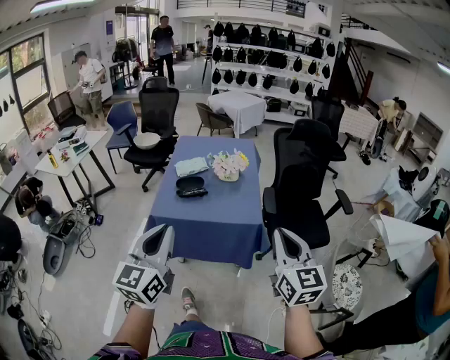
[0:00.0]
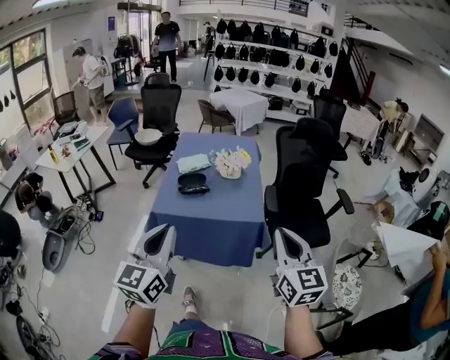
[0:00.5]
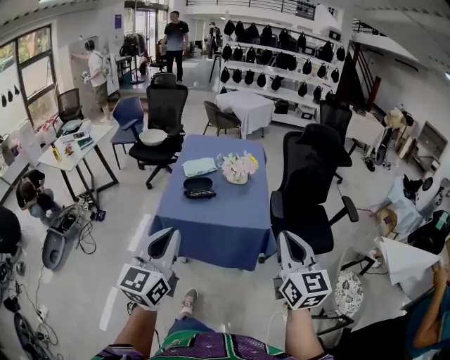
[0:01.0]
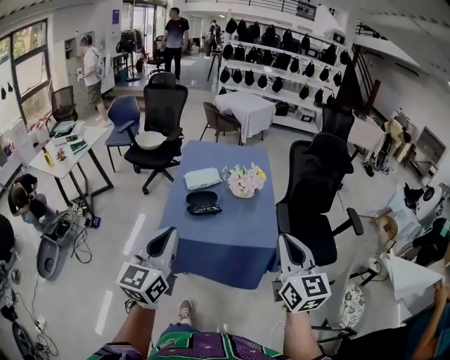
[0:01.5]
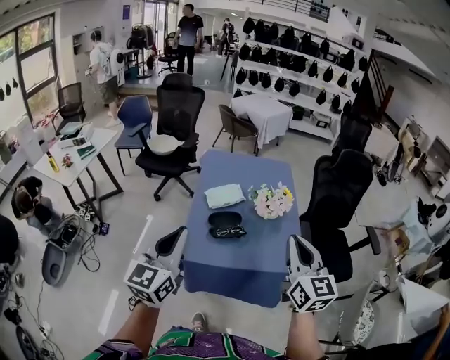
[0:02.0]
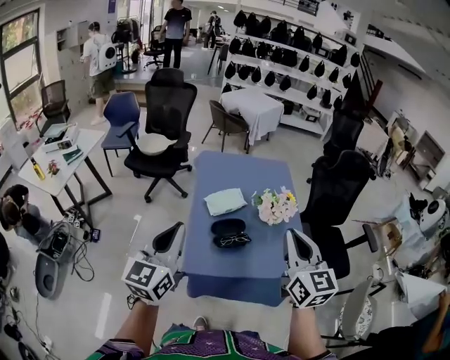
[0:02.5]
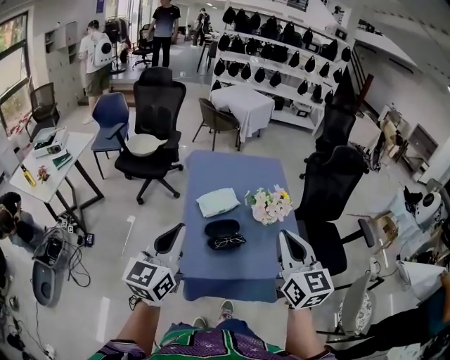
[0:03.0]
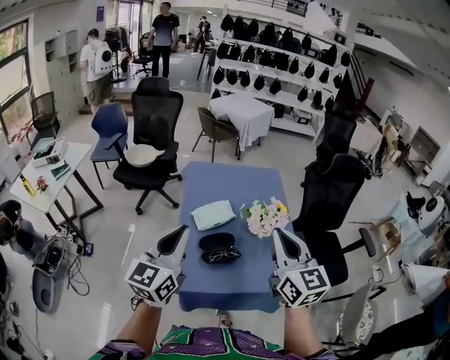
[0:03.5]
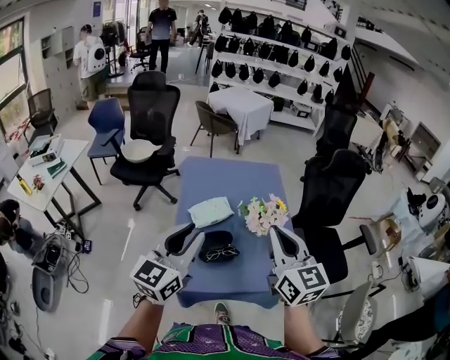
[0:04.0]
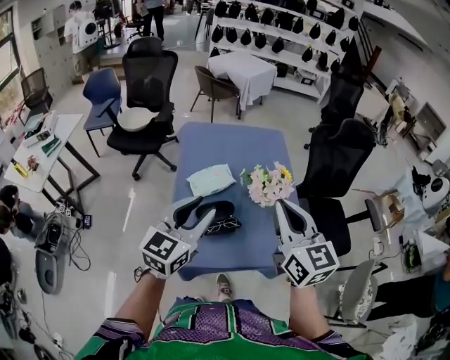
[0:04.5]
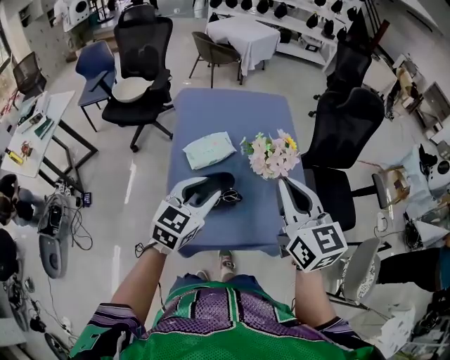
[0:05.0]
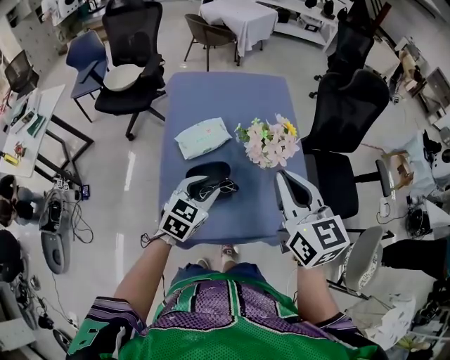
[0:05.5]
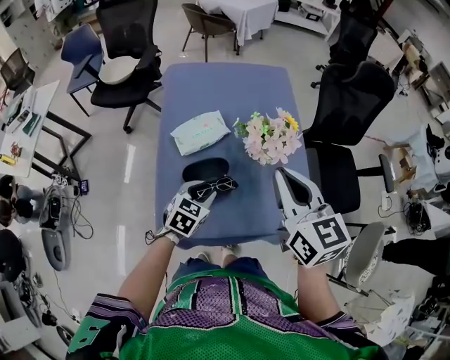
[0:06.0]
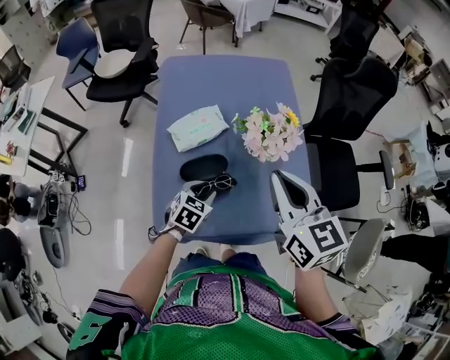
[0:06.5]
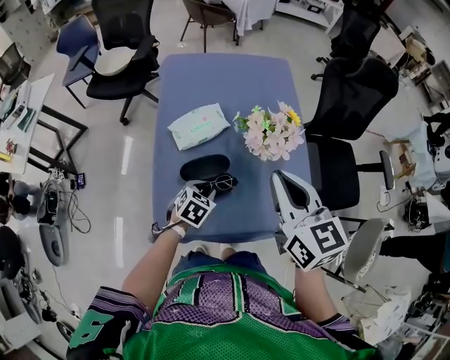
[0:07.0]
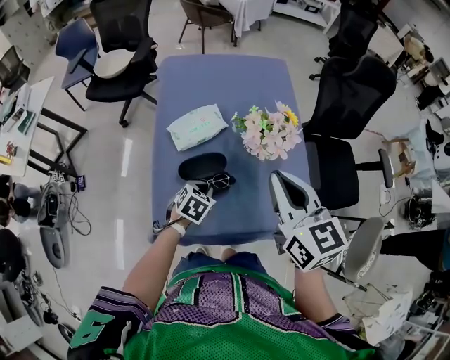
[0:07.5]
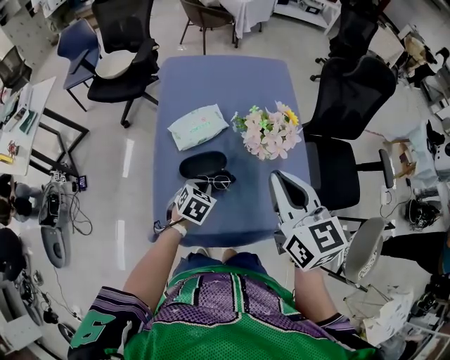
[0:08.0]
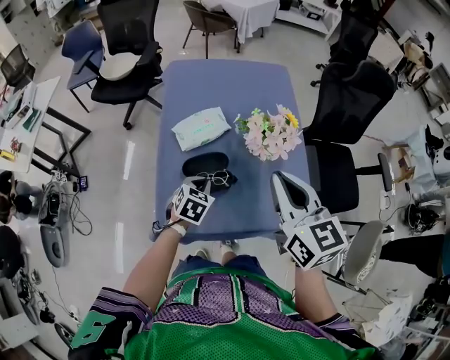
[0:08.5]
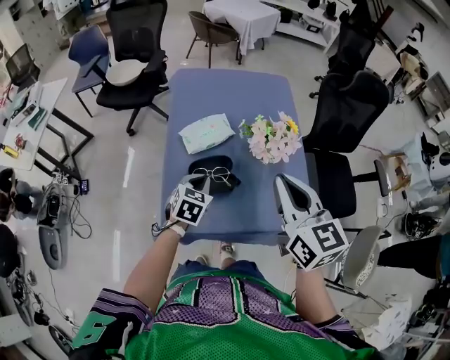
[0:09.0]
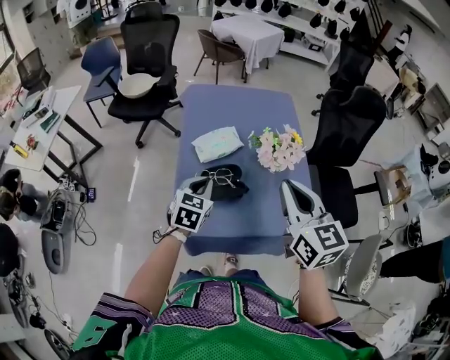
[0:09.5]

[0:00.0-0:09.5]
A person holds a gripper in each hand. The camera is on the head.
0:00.0 to 0:02.0: The two grippers go some 30 cm forward and to the left.
0:02.0 to 0:04.0: The left gripper moves forward, some 15 cm; the right gripper moves forward and to the left, roughly 15 cm.
0:04.0 to 0:05.5: The right gripper is displaced downward and forward by some 10 cm. The left gripper goes some 25 cm downward, and tips its fingers downward by about 30 degrees.
0:05.5 to 0:07.5: The left gripper is displaced downward by some 15 cm, changes its angle by approximately 30 degrees, and closes.
0:07.5 to 0:09.5: The right gripper heads backward, covering approximately 5 cm. Meanwhile the left gripper is displaced upward and to the left by about 15 cm, and swivels some 30 degrees.

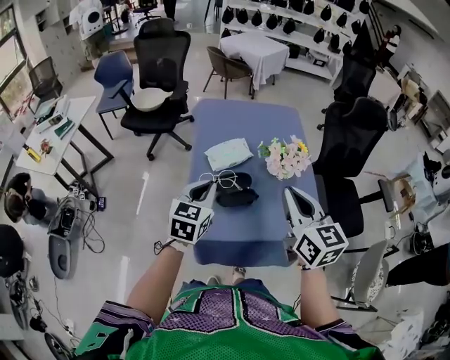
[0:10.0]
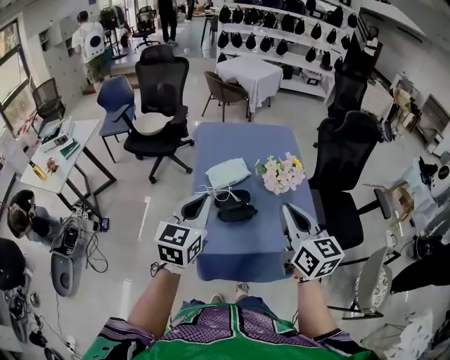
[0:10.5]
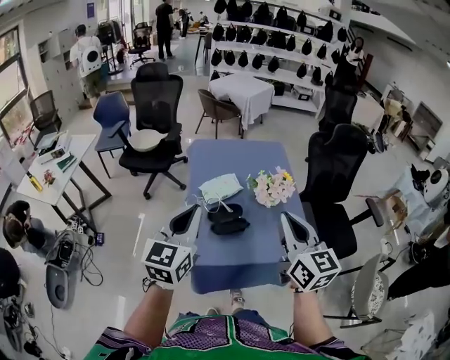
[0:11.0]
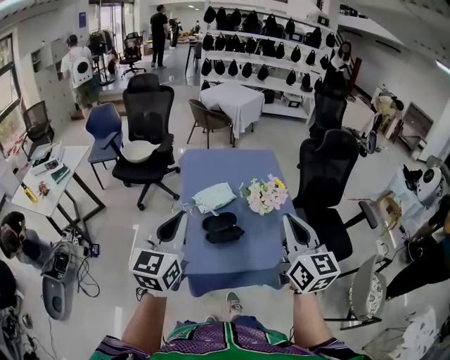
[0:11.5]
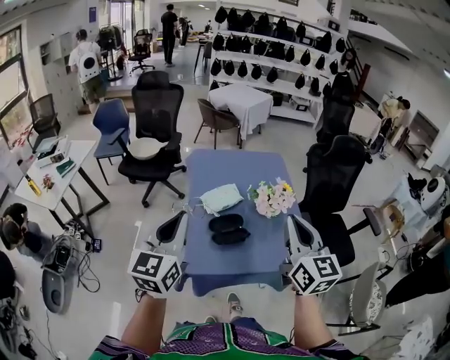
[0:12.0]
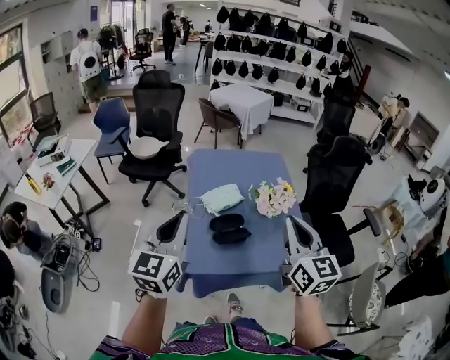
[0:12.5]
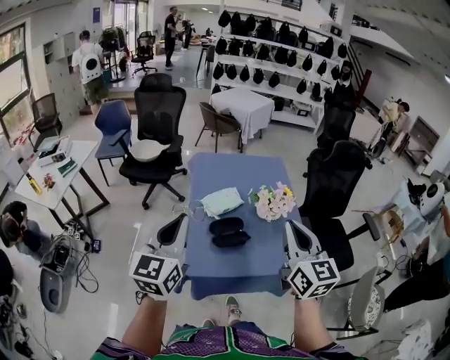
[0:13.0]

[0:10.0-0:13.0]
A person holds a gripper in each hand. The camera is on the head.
0:10.0 to 0:11.5: The left gripper goes roughly 20 cm upward and backward, and swivels some 20 degrees. The right gripper is displaced upward and backward by roughly 10 cm.
0:11.5 to 0:13.0: The grippers stay close to where they were, moving slightly.

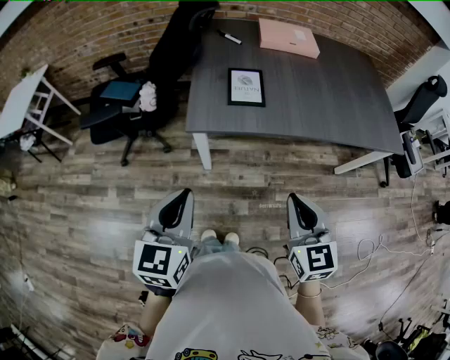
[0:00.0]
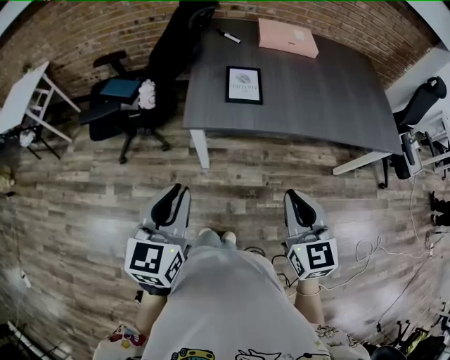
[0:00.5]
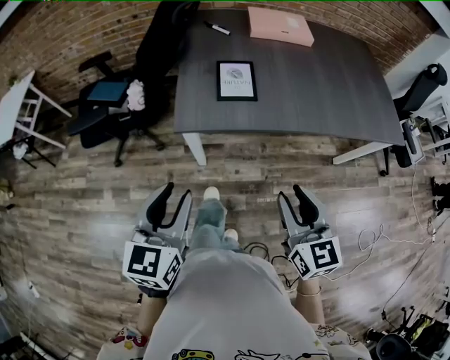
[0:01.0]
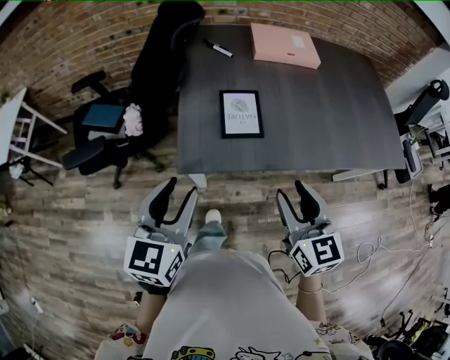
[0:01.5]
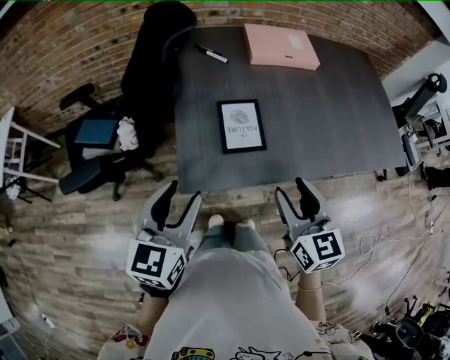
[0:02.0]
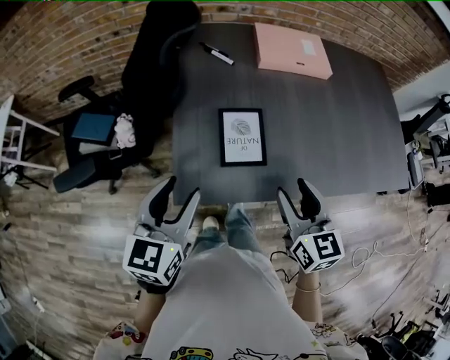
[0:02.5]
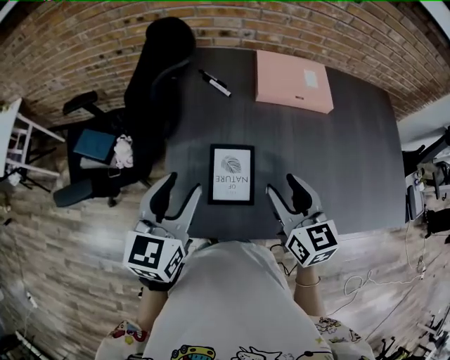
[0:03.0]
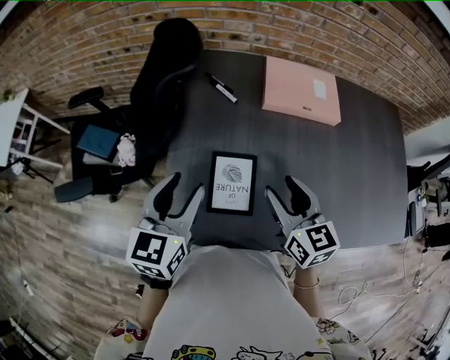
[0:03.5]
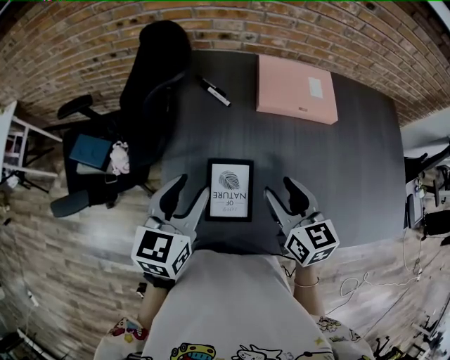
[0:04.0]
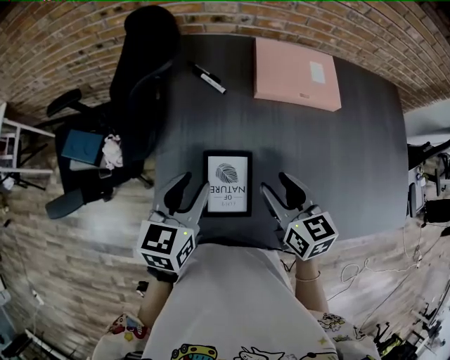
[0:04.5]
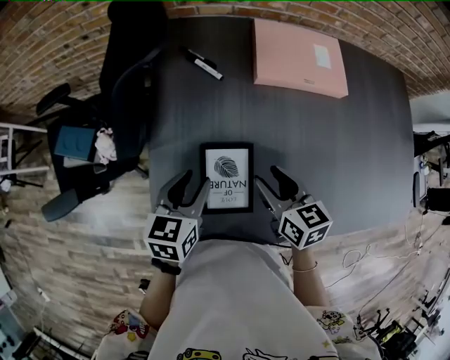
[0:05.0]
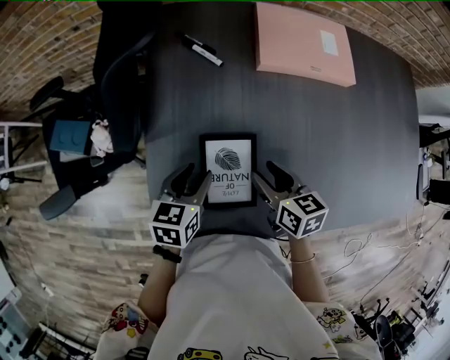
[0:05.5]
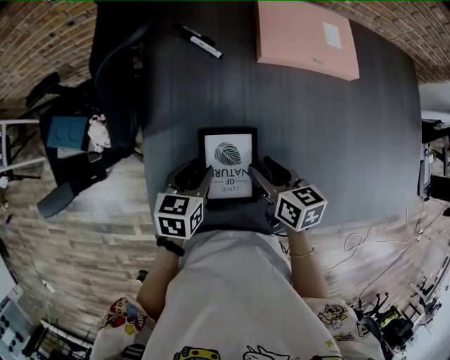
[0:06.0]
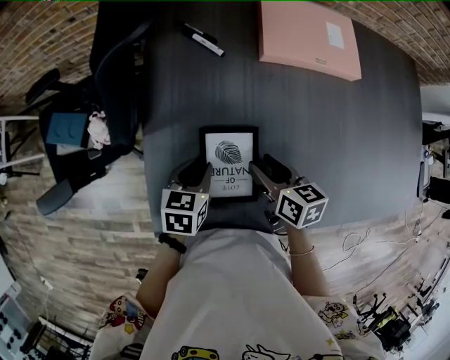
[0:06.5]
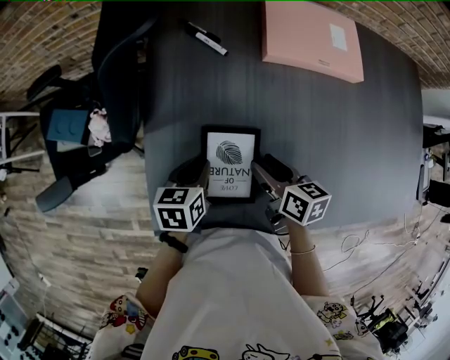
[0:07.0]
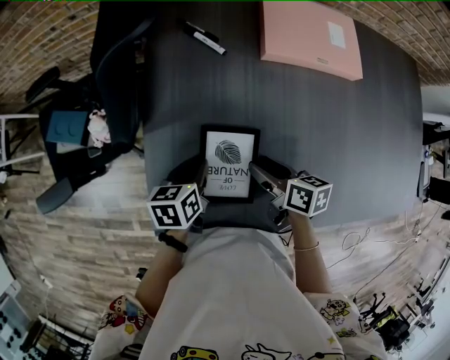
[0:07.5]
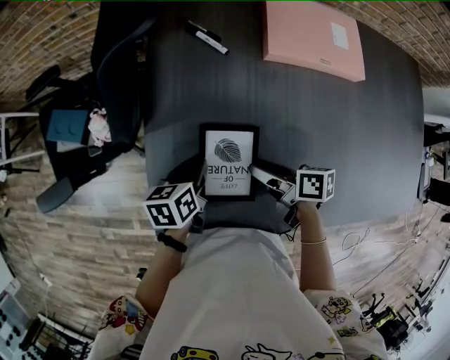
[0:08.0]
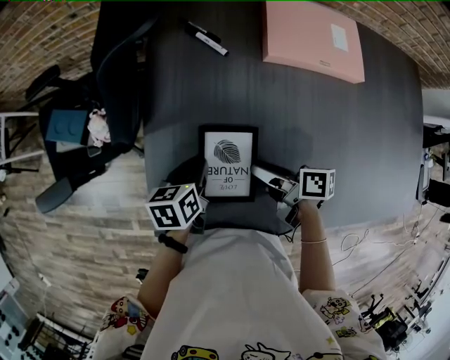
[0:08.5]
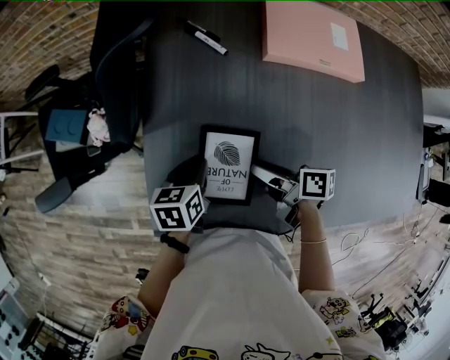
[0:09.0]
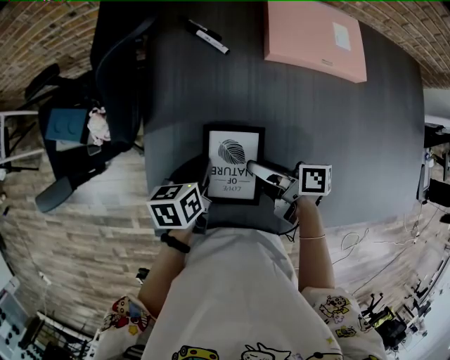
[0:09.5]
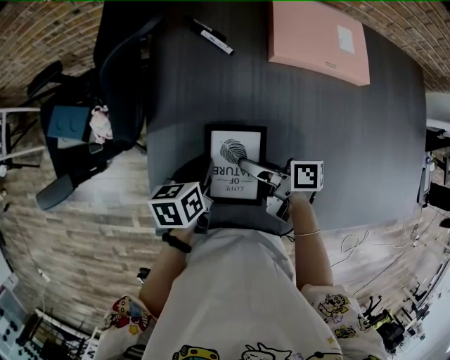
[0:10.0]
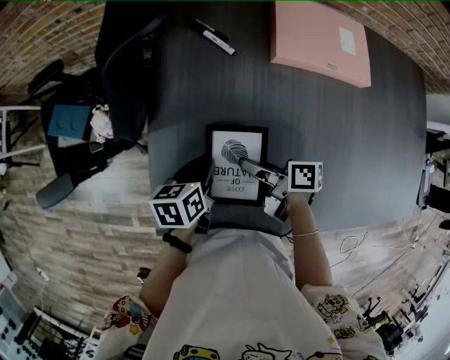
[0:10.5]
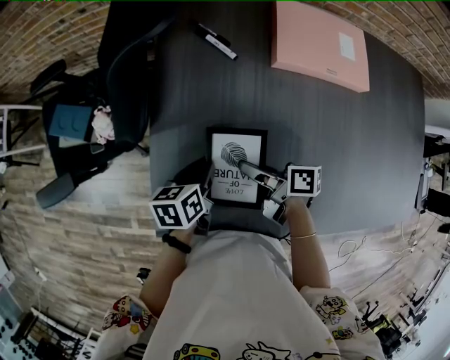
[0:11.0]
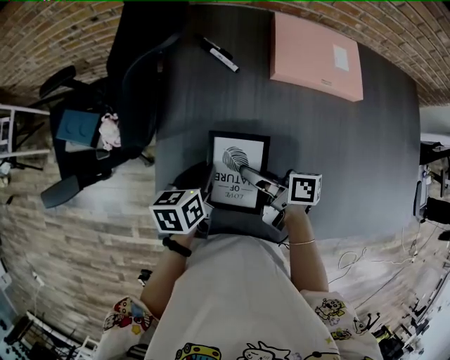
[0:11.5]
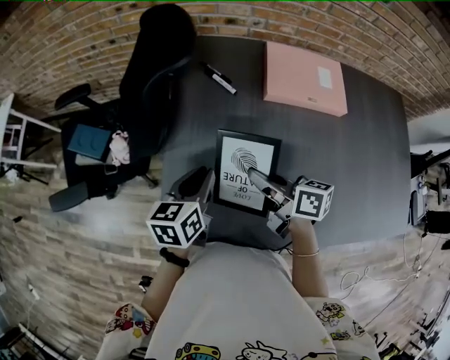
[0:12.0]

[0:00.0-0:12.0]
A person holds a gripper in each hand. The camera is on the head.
0:00.0 to 0:02.0: The two grippers go some 25 cm forward. The right gripper opens, while the left gripper opens its fingers.
0:02.0 to 0:04.0: The grippers both shift forward by about 25 cm.
0:04.0 to 0:06.0: Both grippers travel together downward, some 20 cm. The left gripper turns by about 30 degrees. Meanwhile the right gripper changes its angle by some 30 degrees.
0:06.0 to 0:08.0: The right gripper swivels roughly 30 degrees; the left gripper changes its angle by roughly 20 degrees, and closes.
0:08.0 to 0:10.0: The right gripper changes place by some 5 cm, and closes up.
0:10.0 to 0:12.0: Both grippers travel together upward, approximately 10 cm. The right gripper rotates about 30 degrees, and closes up, while the left gripper rotates some 20 degrees.

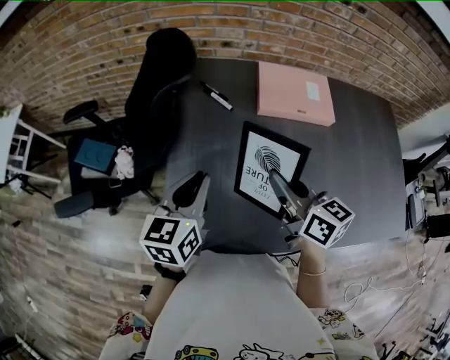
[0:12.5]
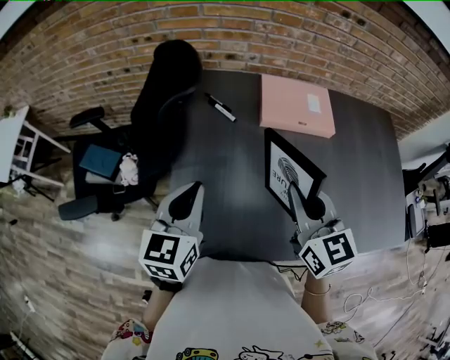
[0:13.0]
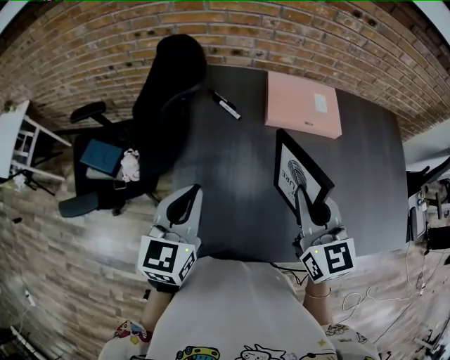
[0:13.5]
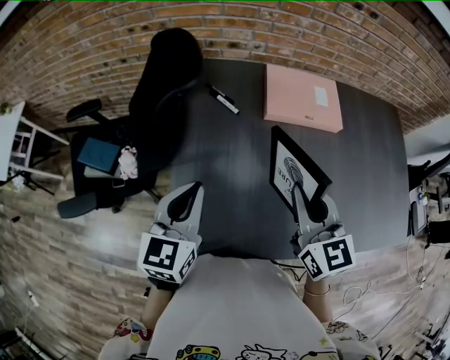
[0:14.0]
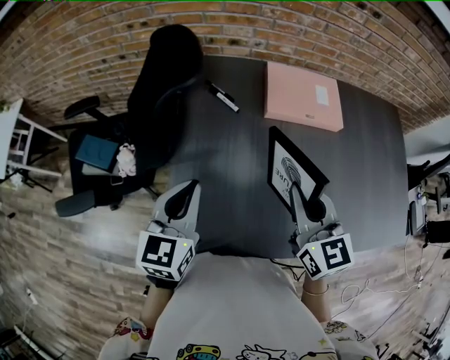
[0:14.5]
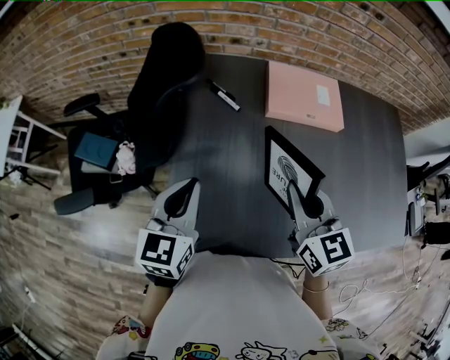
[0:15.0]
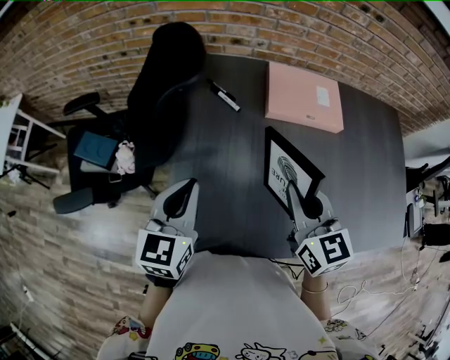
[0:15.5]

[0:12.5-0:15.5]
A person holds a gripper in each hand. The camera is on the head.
0:12.5 to 0:14.0: The right gripper turns by about 30 degrees.
0:14.0 to 0:15.5: There are only small adjustments of the grippers.
